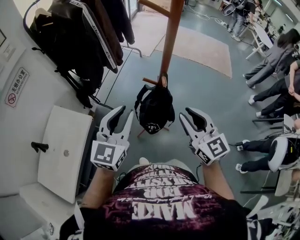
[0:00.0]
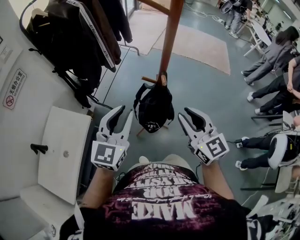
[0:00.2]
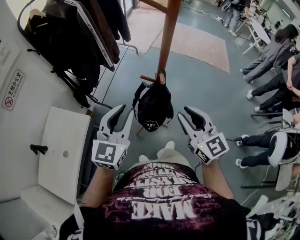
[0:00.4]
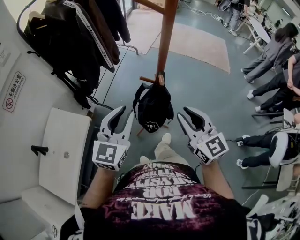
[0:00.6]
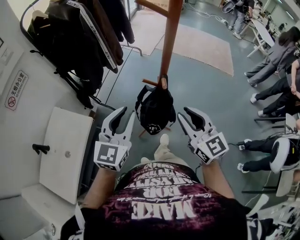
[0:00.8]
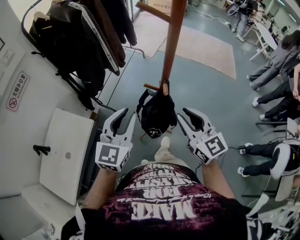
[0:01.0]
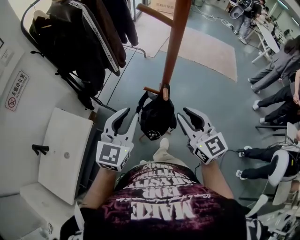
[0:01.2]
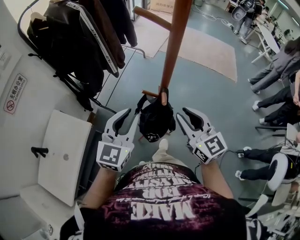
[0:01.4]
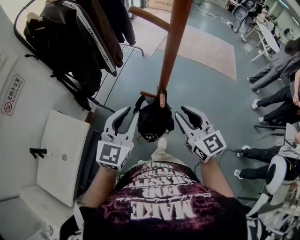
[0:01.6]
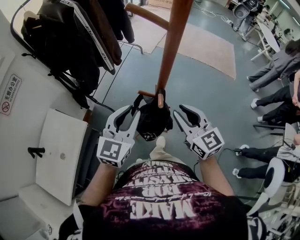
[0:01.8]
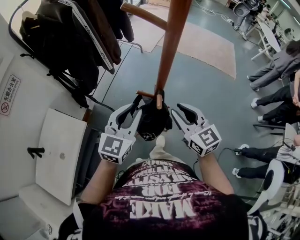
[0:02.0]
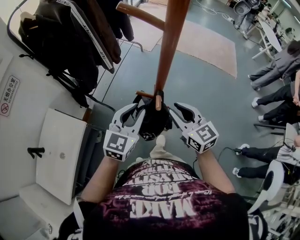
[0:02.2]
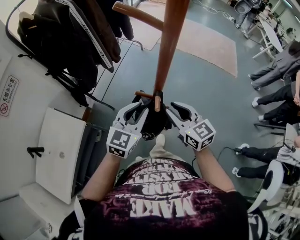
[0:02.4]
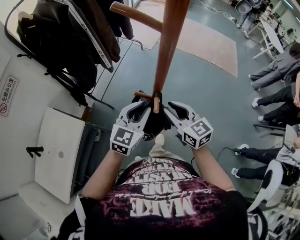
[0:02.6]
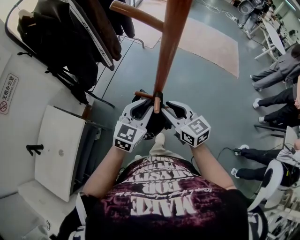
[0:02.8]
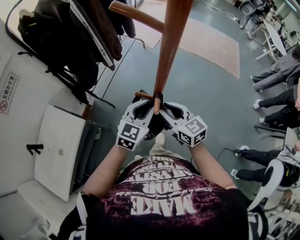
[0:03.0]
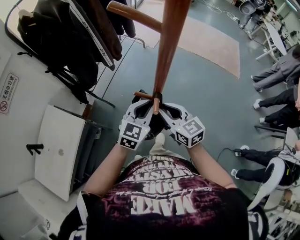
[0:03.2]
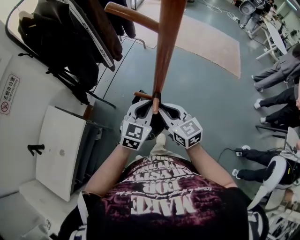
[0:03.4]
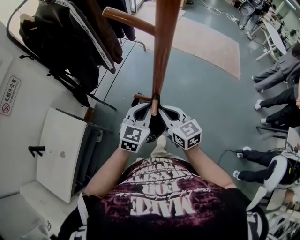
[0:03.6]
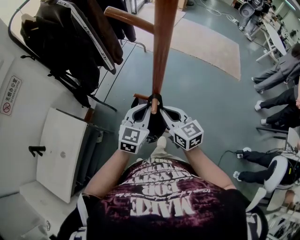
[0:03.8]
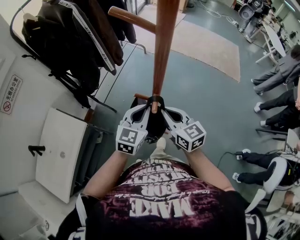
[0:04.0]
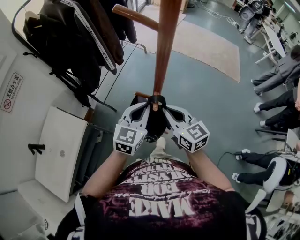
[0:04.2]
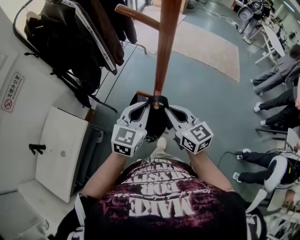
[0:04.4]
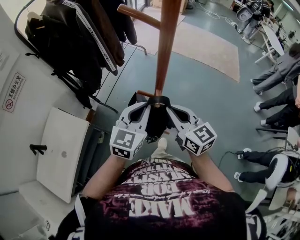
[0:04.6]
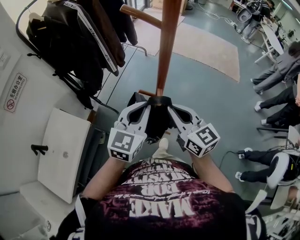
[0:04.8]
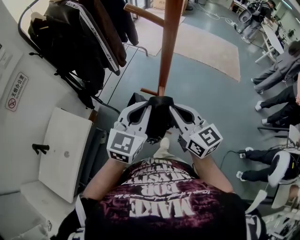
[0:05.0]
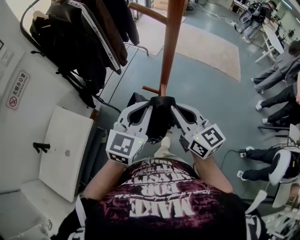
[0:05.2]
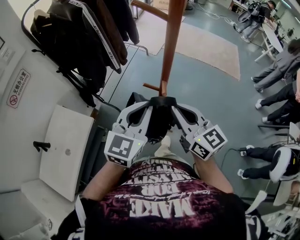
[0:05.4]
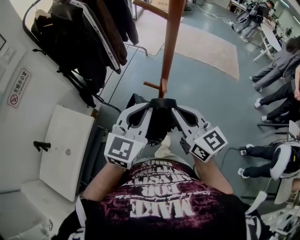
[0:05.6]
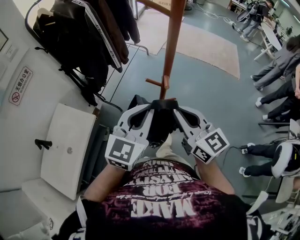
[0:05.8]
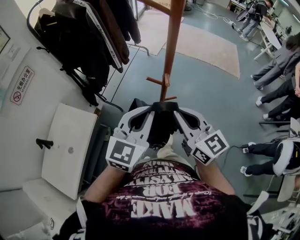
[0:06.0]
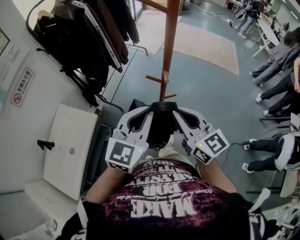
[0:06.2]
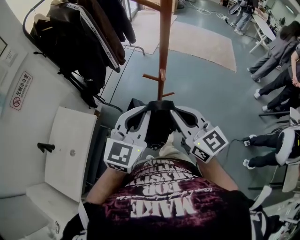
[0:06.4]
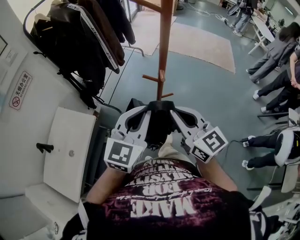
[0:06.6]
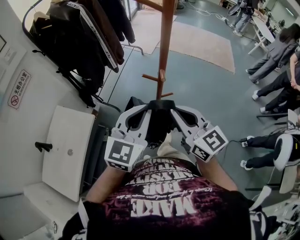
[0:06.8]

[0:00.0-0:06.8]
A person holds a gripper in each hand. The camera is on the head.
0:00.0 to 0:01.4: The two grippers go some 5 cm forward.
0:01.4 to 0:02.8: The right gripper goes some 10 cm downward and forward. The left gripper shifts roughly 15 cm downward, to the right and forward.
0:02.8 to 0:04.0: The right gripper closes up.
0:04.0 to 0:05.4: Both grippers travel together upward and backward, approximately 15 cm.
0:05.4 to 0:06.8: The two grippers go some 5 cm backward.

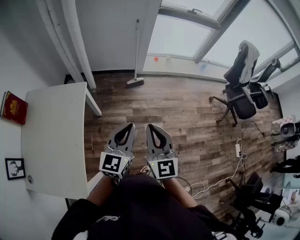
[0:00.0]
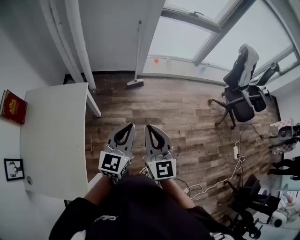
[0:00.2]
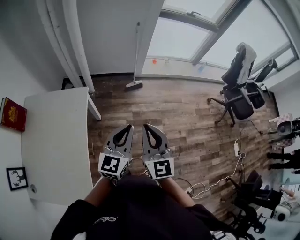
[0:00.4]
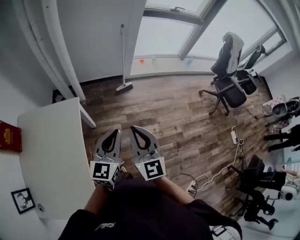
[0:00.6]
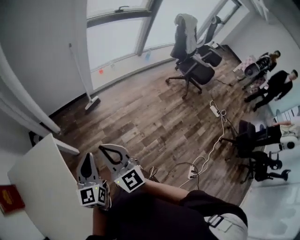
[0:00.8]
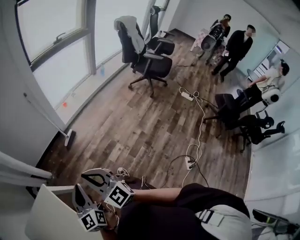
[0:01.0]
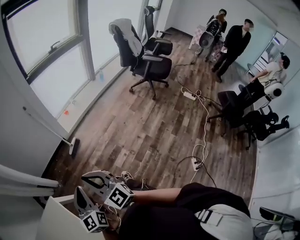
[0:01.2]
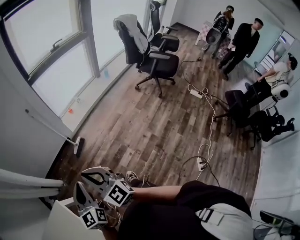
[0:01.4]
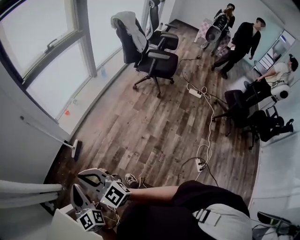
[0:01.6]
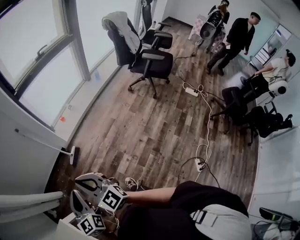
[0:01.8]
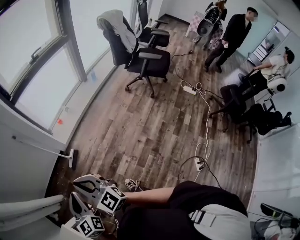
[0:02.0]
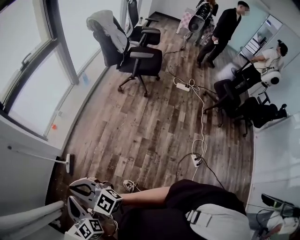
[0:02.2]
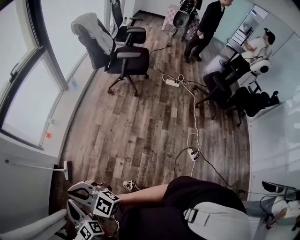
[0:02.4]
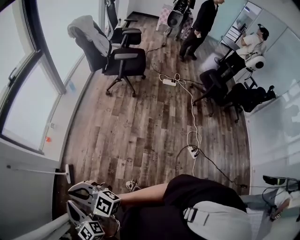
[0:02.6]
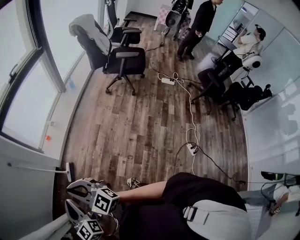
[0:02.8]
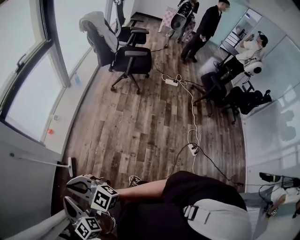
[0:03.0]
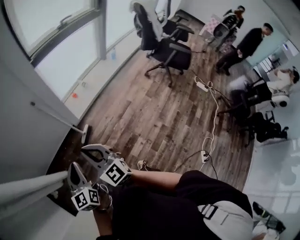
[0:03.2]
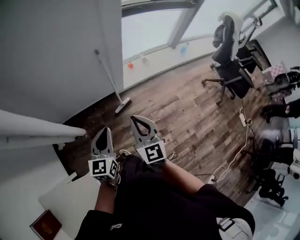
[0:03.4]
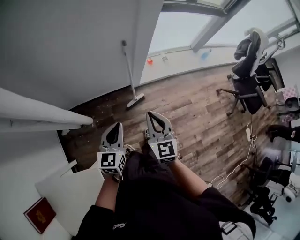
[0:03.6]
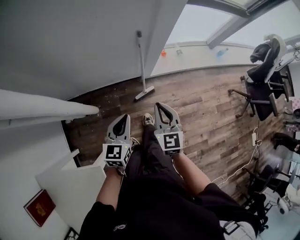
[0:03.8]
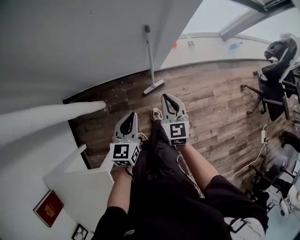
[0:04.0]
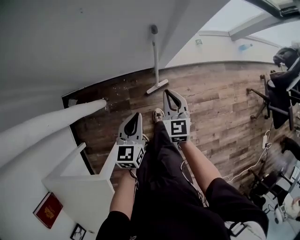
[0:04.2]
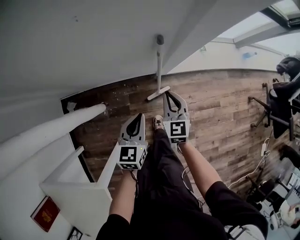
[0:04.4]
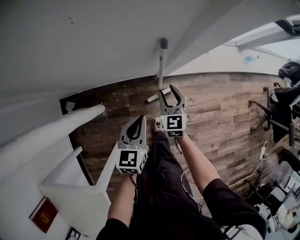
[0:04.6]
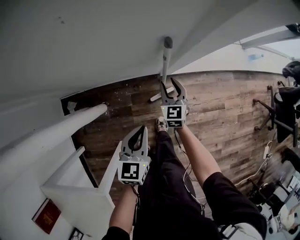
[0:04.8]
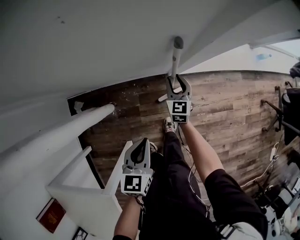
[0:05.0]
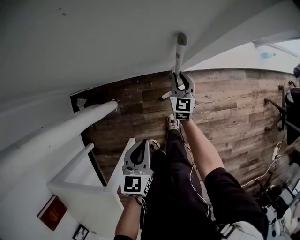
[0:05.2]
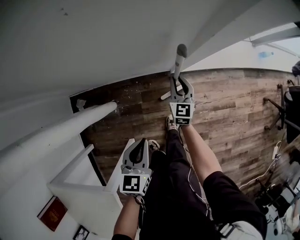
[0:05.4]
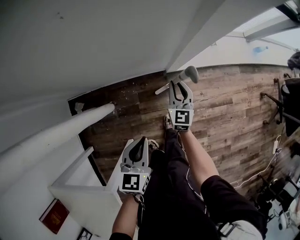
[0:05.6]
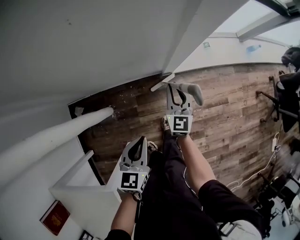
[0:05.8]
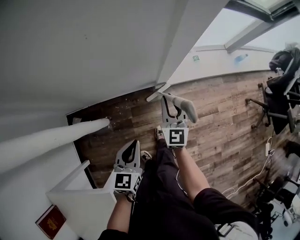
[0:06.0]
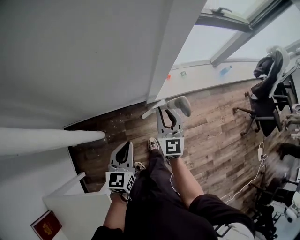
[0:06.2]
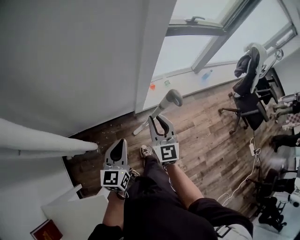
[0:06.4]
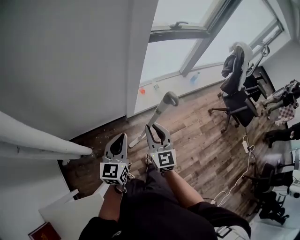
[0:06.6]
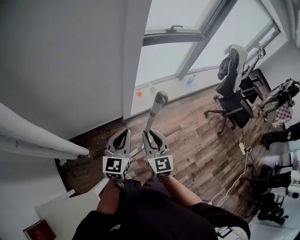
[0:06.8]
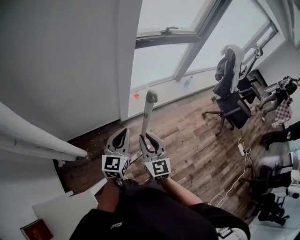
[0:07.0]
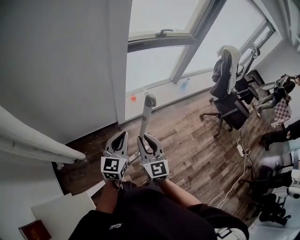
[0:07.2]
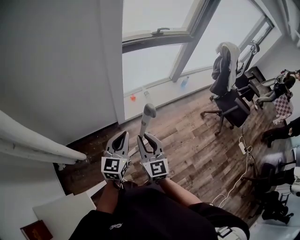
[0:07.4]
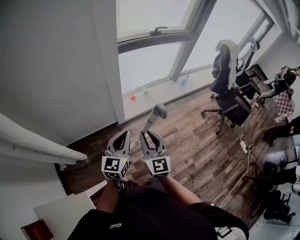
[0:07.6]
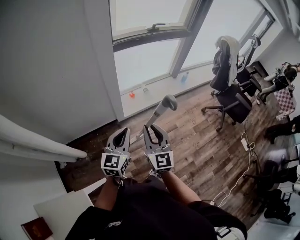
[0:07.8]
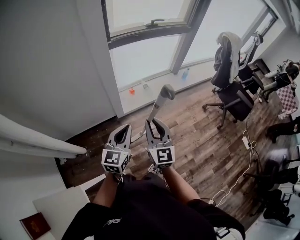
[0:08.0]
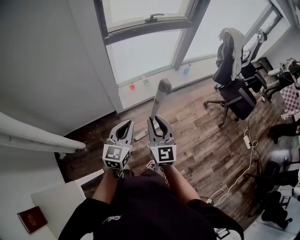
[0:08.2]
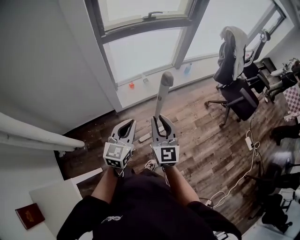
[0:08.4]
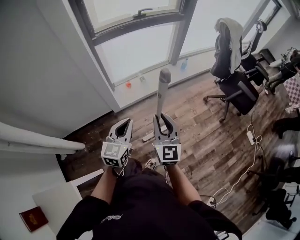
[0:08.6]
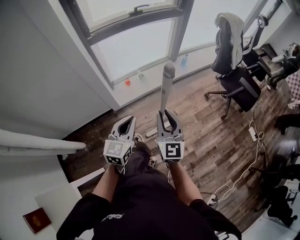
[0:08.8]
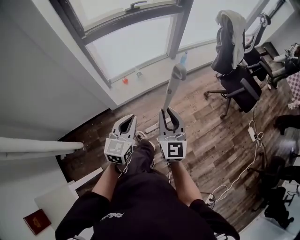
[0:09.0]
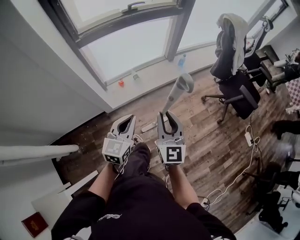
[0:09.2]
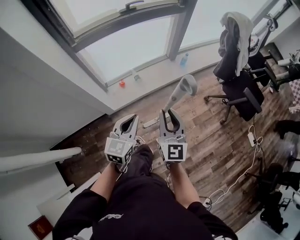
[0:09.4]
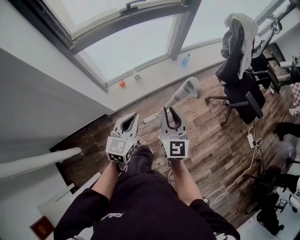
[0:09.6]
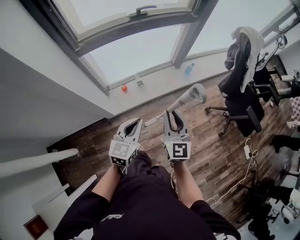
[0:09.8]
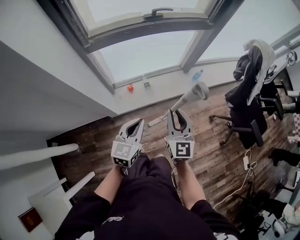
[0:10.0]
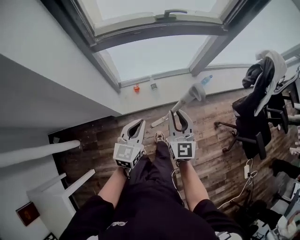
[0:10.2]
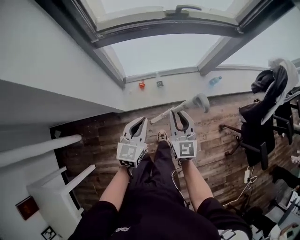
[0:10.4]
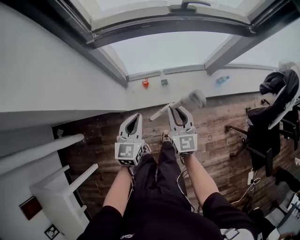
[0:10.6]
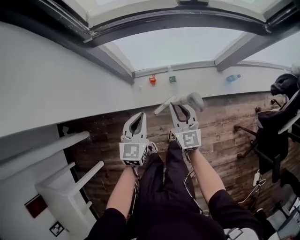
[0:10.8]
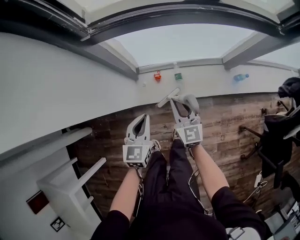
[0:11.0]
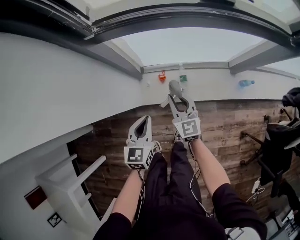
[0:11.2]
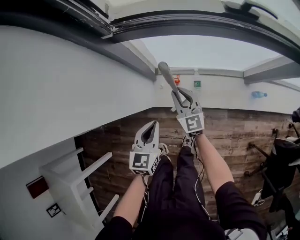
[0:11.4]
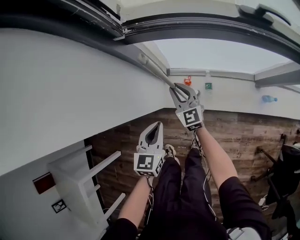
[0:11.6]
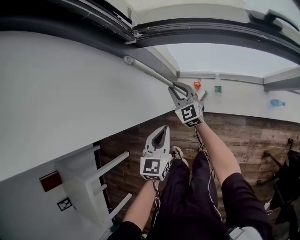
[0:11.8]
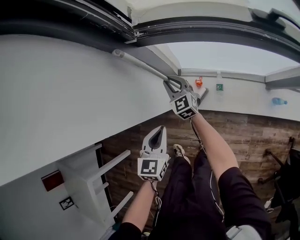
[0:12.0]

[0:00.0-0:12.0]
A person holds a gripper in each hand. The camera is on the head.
0:00.0 to 0:01.6: The grippers both shift forward by approximately 25 cm.
0:01.6 to 0:03.0: Both grippers travel together forward, about 20 cm.
0:03.0 to 0:04.4: The right gripper moves forward and downward, about 50 cm. The left gripper goes some 35 cm forward, downward and to the left, and turns by some 20 degrees.
0:04.4 to 0:06.0: The right gripper moves upward, about 10 cm. Meanwhile the left gripper heads backward and upward, covering roughly 10 cm.
0:06.0 to 0:07.6: The left gripper goes about 30 cm upward and to the right, and changes its angle by approximately 30 degrees. The right gripper heads upward, backward and to the right, covering approximately 35 cm.
0:07.6 to 0:09.0: Both grippers move to the right and forward, some 30 cm.
0:09.0 to 0:10.4: The grippers both shift forward by about 30 cm. The right gripper changes its angle by about 20 degrees.
0:10.4 to 0:12.0: The right gripper changes place by about 40 cm, and swivels about 40 degrees, while the left gripper shifts by about 20 cm, and changes its angle by approximately 30 degrees.

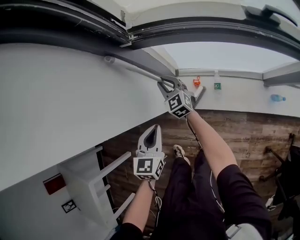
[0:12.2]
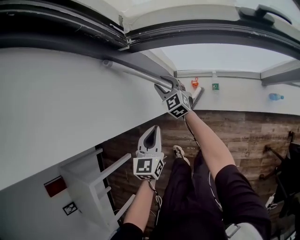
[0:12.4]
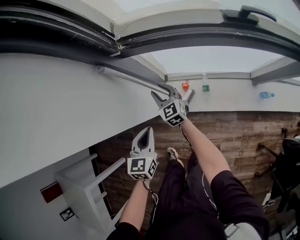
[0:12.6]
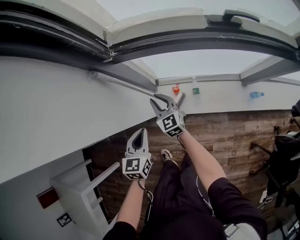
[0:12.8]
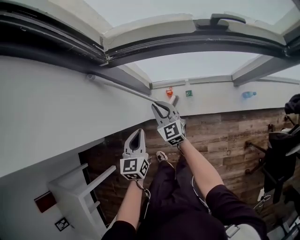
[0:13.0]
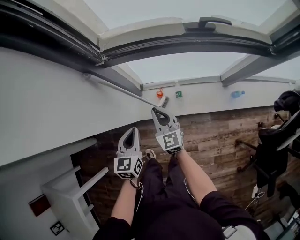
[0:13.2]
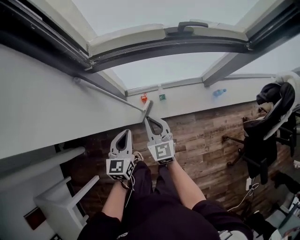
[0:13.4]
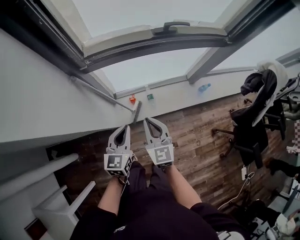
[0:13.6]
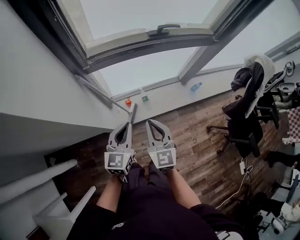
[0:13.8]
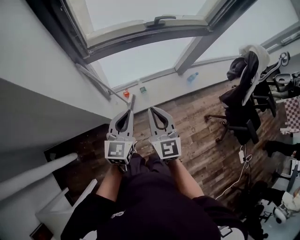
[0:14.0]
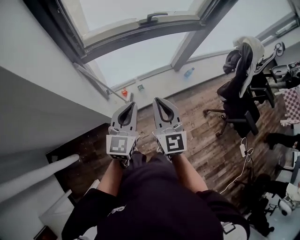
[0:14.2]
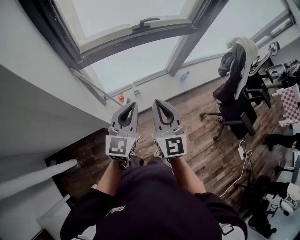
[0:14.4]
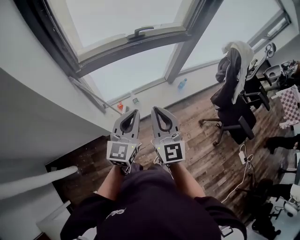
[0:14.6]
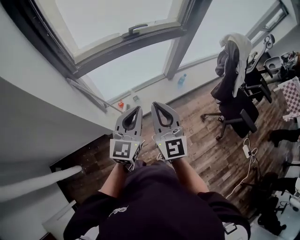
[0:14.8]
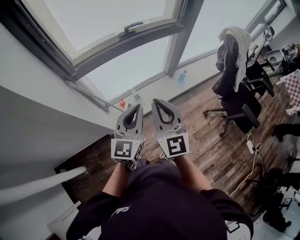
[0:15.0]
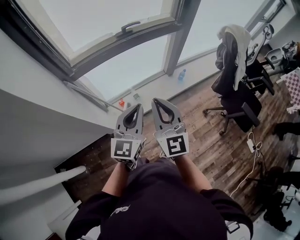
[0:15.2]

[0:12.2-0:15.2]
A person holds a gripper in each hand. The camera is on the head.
0:12.2 to 0:13.8: The right gripper changes place by approximately 40 cm, and swivels some 40 degrees; the left gripper heads upward, covering about 15 cm, and rotates approximately 30 degrees.
0:13.8 to 0:15.2: The left gripper is displaced to the right and upward by some 20 cm, and swivels approximately 20 degrees. The right gripper travels upward and to the right by about 20 cm, and rotates roughly 20 degrees.

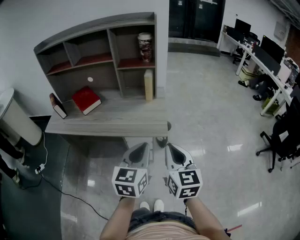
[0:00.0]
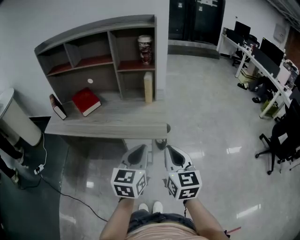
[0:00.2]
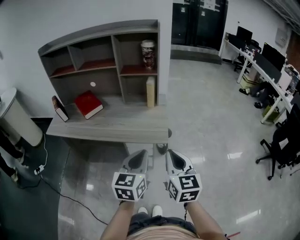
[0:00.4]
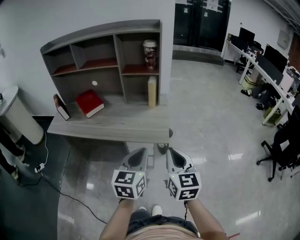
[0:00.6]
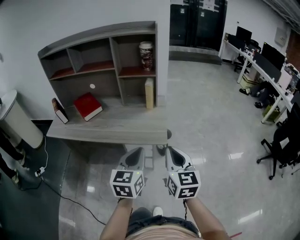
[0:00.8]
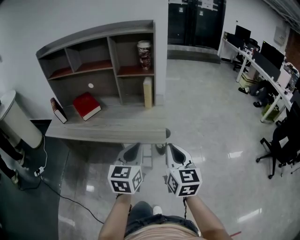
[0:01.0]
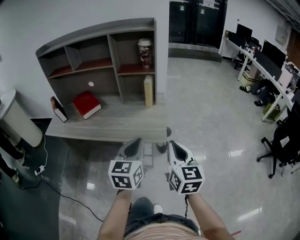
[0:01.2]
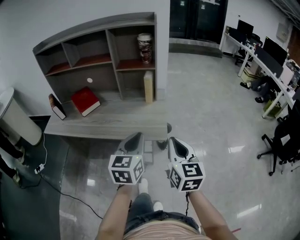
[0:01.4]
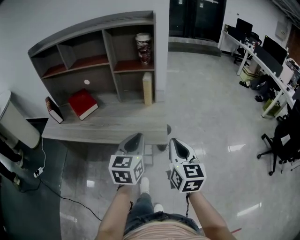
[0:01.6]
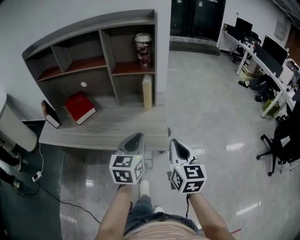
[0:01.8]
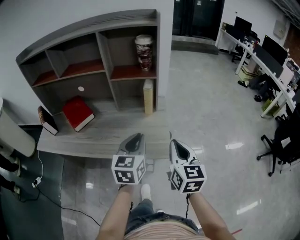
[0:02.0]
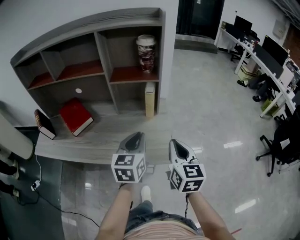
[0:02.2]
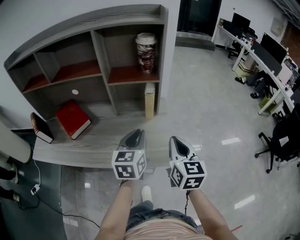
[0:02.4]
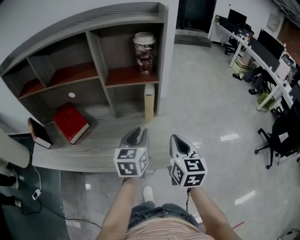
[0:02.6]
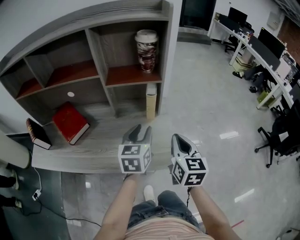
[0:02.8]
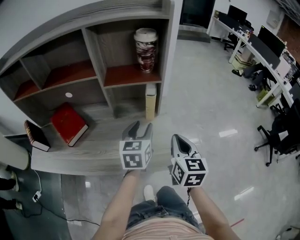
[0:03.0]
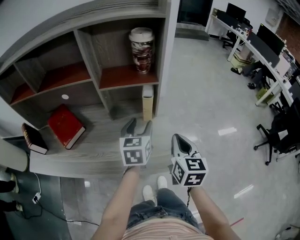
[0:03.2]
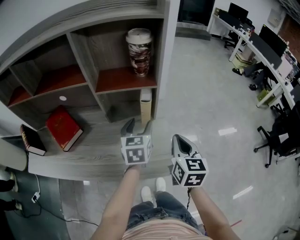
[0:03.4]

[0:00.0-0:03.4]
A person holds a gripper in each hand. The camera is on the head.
0:00.0 to 0:01.6: Both grippers move forward, roughly 10 cm.
0:01.6 to 0:03.4: Both grippers move forward, approximately 25 cm. The left gripper opens its fingers.
